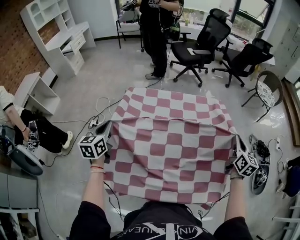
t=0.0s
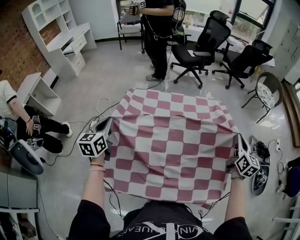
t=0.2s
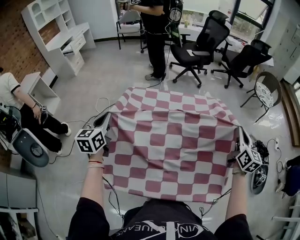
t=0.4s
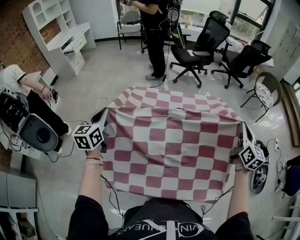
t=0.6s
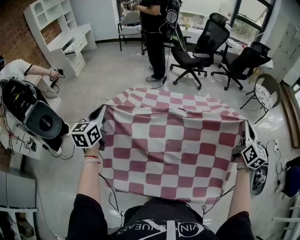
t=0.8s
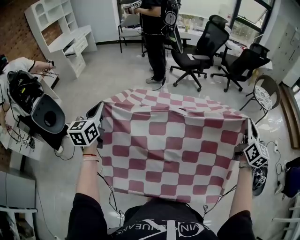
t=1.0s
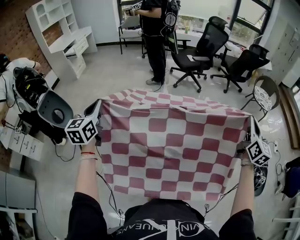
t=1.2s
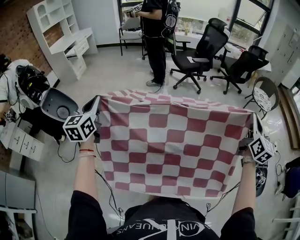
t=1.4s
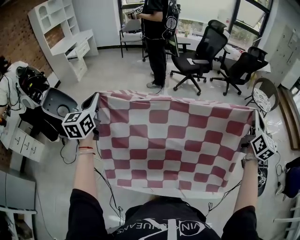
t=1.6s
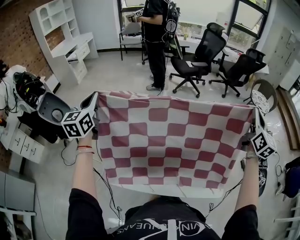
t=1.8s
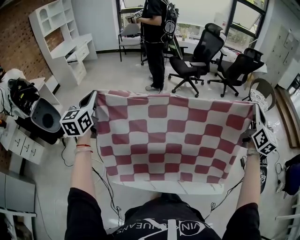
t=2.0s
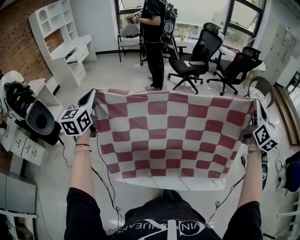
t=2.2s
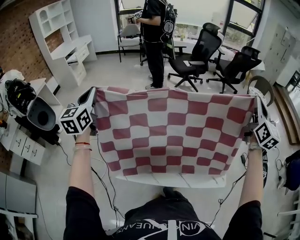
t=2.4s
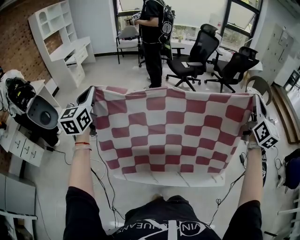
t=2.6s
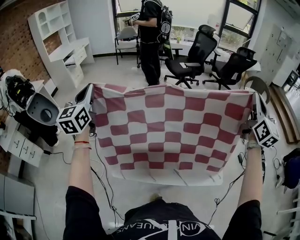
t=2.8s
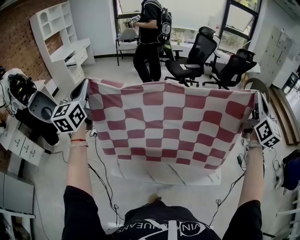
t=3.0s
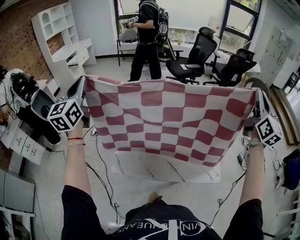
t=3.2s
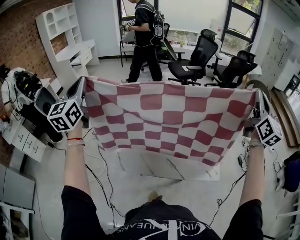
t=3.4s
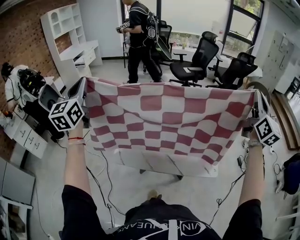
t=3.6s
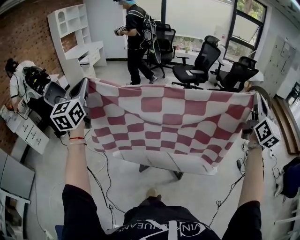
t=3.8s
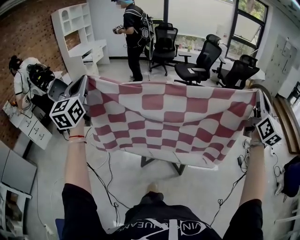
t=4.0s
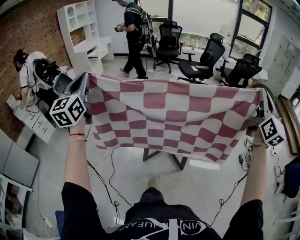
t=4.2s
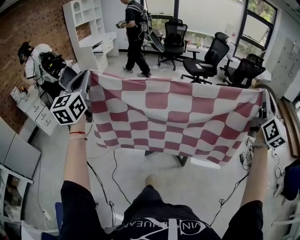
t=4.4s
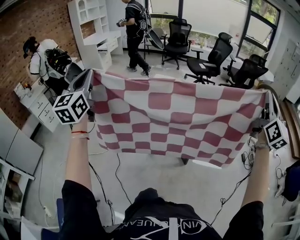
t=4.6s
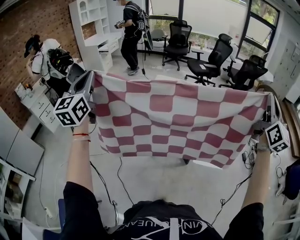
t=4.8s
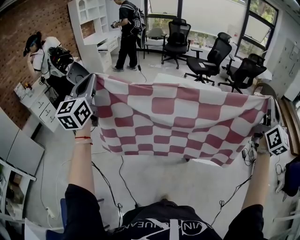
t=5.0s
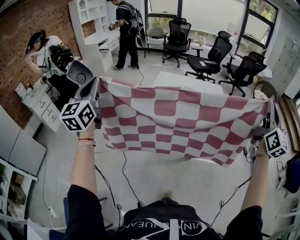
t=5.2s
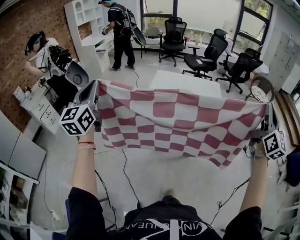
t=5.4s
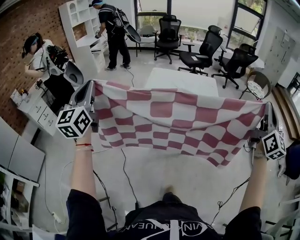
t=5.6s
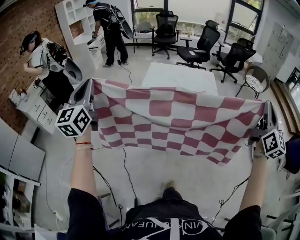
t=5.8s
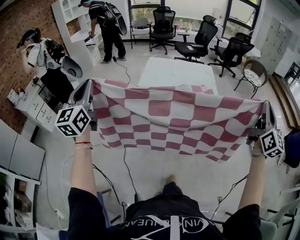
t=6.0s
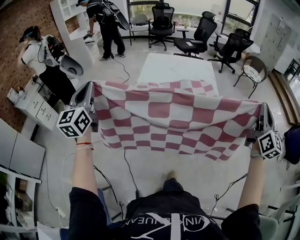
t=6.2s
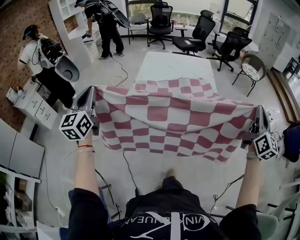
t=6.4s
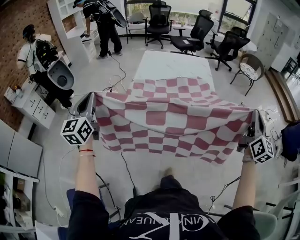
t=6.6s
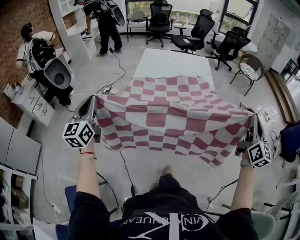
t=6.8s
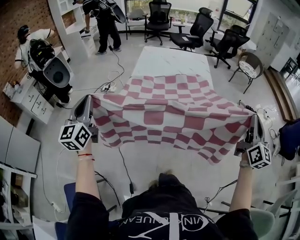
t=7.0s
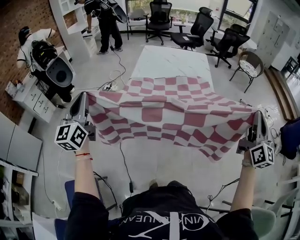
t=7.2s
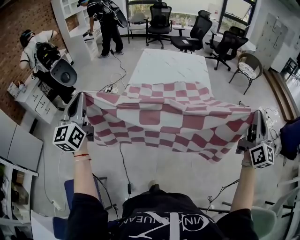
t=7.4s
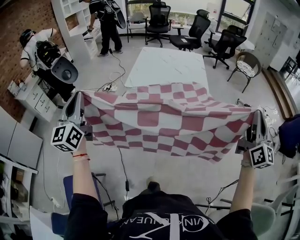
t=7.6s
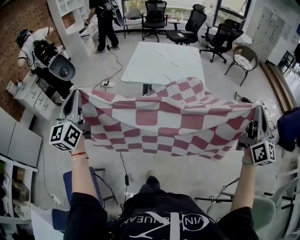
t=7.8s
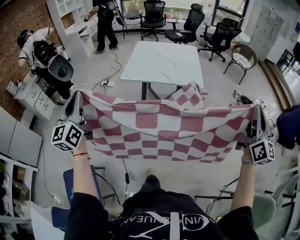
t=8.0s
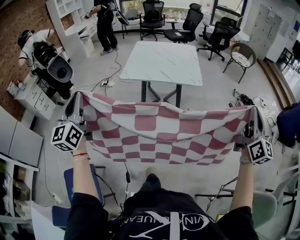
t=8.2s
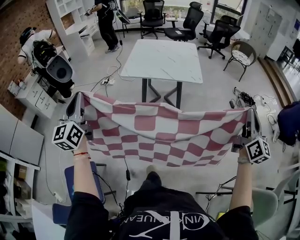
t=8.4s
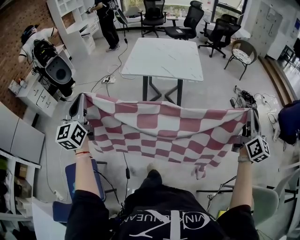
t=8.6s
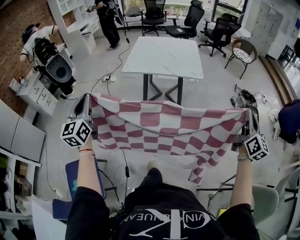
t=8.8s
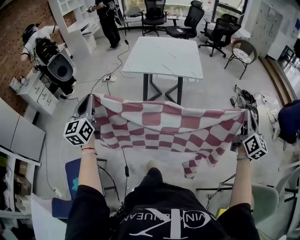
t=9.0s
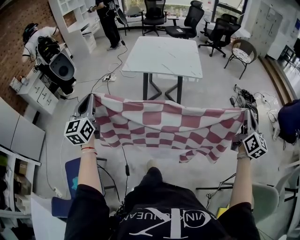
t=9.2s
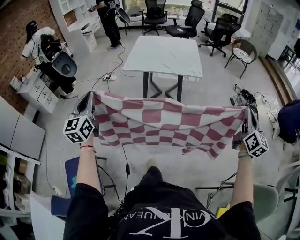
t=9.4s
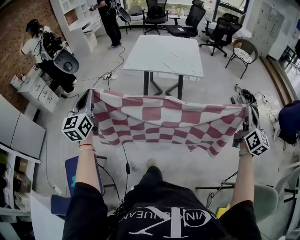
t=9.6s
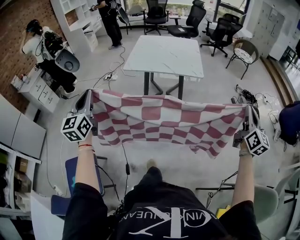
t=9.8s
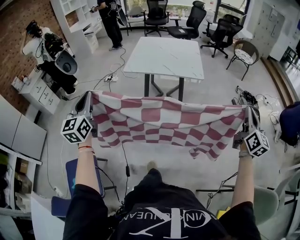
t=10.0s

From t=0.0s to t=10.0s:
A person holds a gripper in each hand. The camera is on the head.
From t=0.0s to t=1.4s: Both grippers travel together upward, roughly 15 cm. The right gripper changes its angle by some 20 degrees.
From t=1.4s to t=2.8s: Both grippers travel together upward and backward, about 15 cm.
From t=2.8s to t=4.2s: Both grippers travel together backward, approximately 25 cm.
From t=4.2s to t=5.8s: Both grippers move backward, some 20 cm.
From t=5.8s to t=7.2s: Both grippers move backward and downward, roughly 15 cm.
From t=7.2s to t=8.6s: The right gripper goes roughly 15 cm backward and to the right. The left gripper goes approximately 15 cm backward.
From t=8.6s to t=10.0s: The grippers make only small movements.

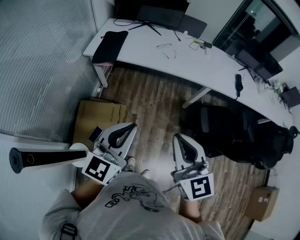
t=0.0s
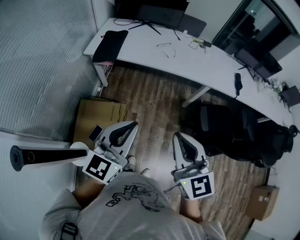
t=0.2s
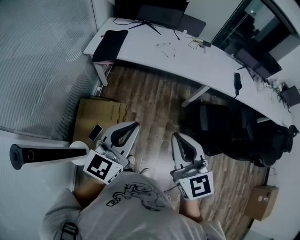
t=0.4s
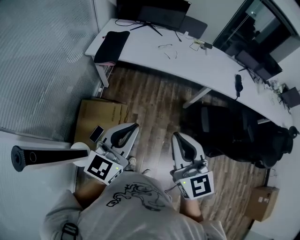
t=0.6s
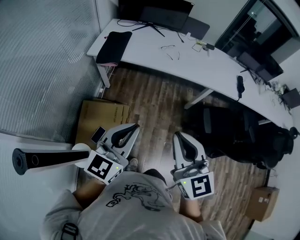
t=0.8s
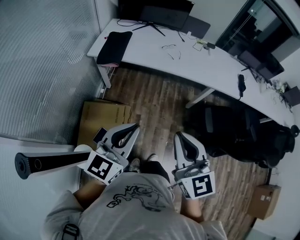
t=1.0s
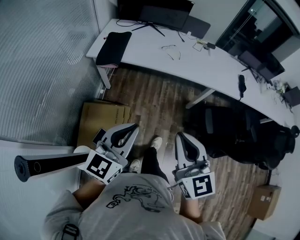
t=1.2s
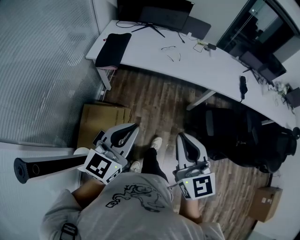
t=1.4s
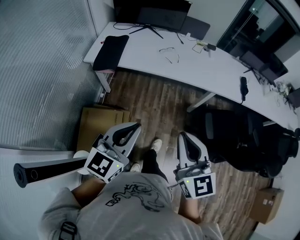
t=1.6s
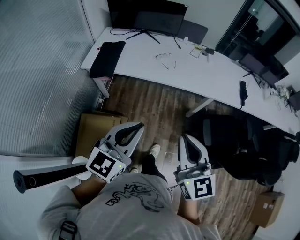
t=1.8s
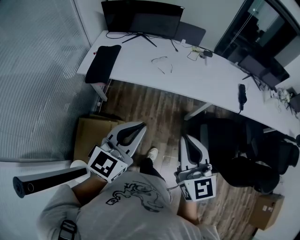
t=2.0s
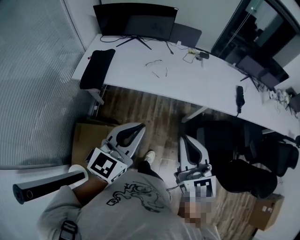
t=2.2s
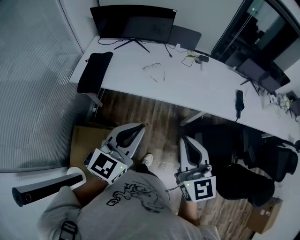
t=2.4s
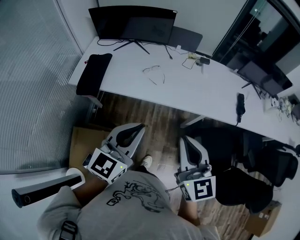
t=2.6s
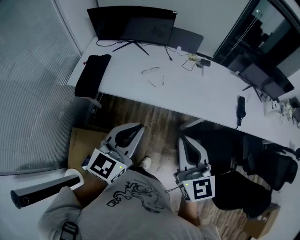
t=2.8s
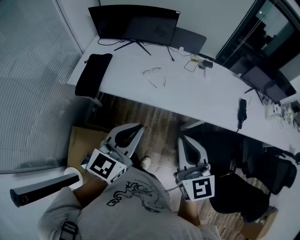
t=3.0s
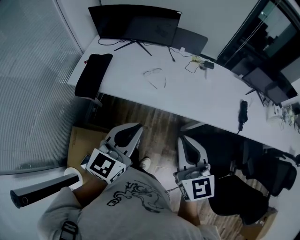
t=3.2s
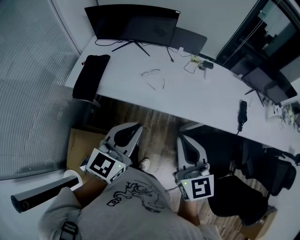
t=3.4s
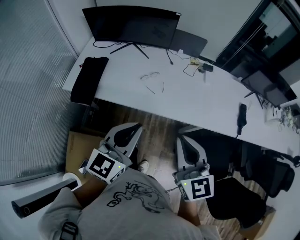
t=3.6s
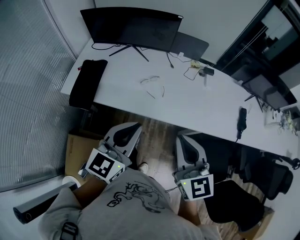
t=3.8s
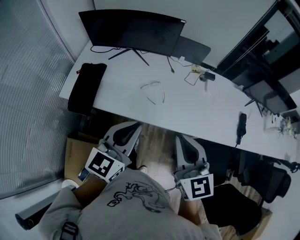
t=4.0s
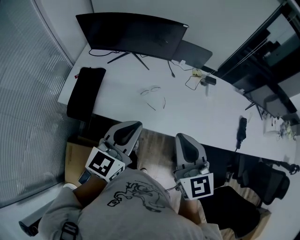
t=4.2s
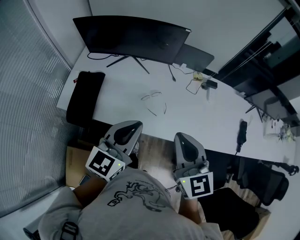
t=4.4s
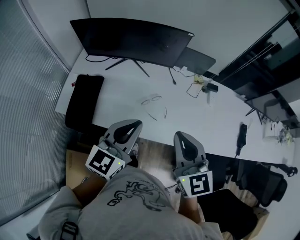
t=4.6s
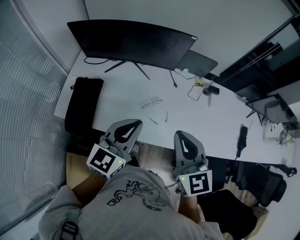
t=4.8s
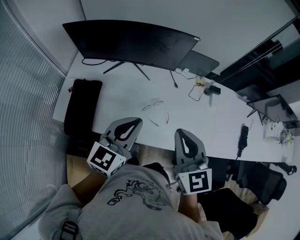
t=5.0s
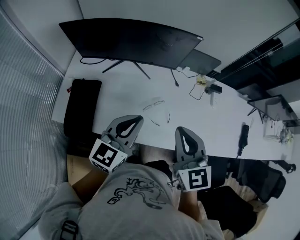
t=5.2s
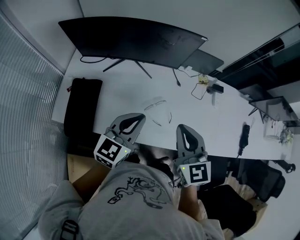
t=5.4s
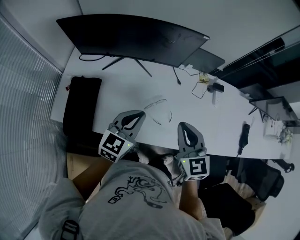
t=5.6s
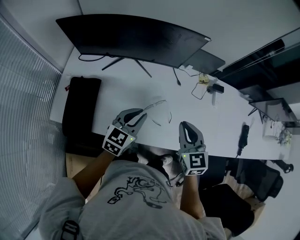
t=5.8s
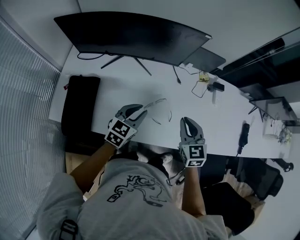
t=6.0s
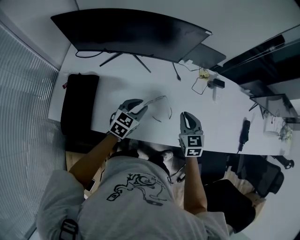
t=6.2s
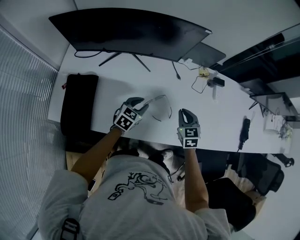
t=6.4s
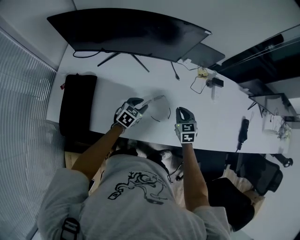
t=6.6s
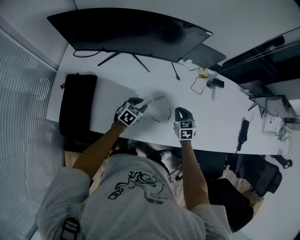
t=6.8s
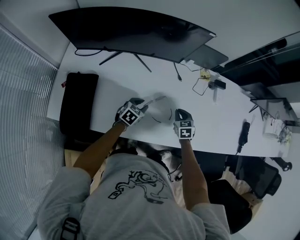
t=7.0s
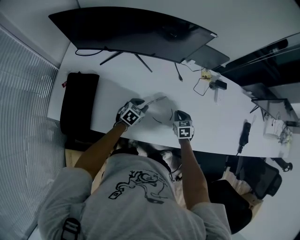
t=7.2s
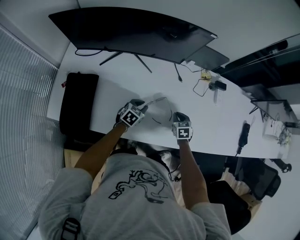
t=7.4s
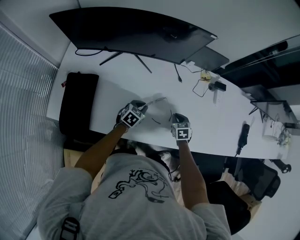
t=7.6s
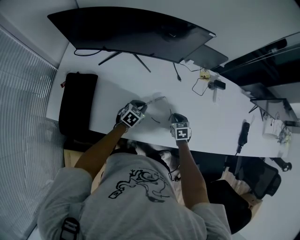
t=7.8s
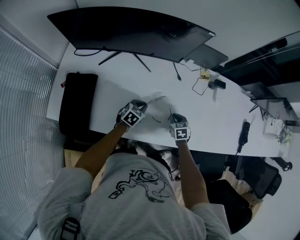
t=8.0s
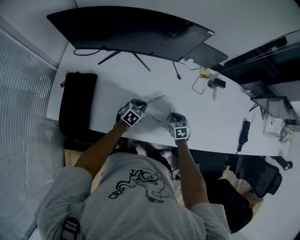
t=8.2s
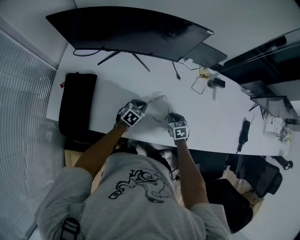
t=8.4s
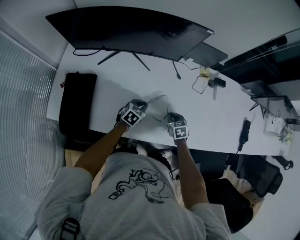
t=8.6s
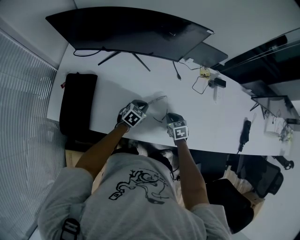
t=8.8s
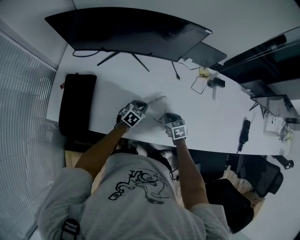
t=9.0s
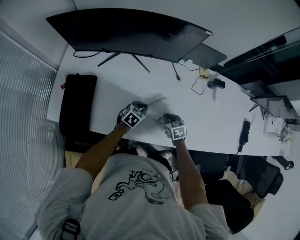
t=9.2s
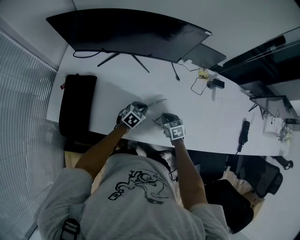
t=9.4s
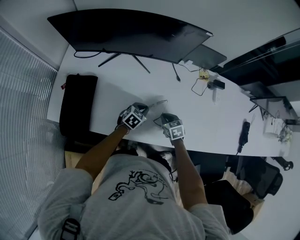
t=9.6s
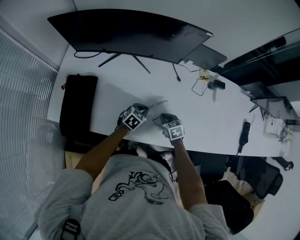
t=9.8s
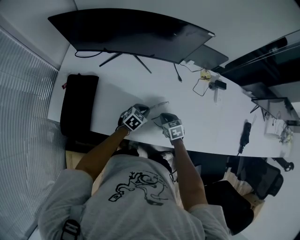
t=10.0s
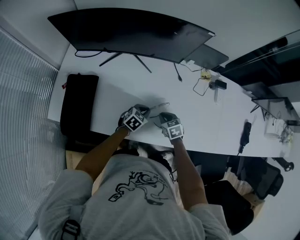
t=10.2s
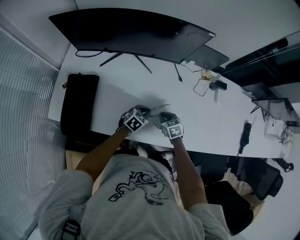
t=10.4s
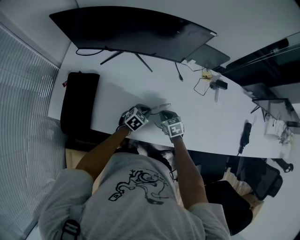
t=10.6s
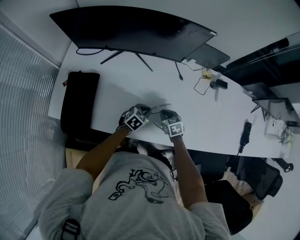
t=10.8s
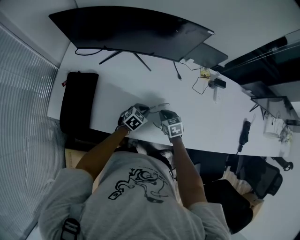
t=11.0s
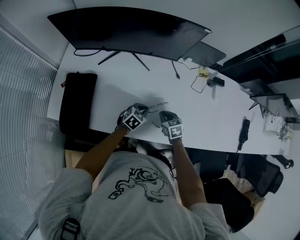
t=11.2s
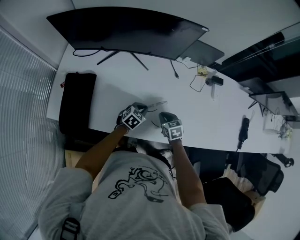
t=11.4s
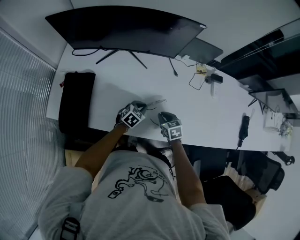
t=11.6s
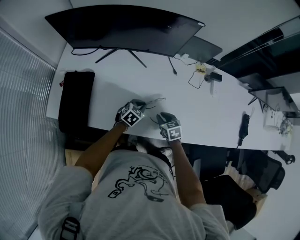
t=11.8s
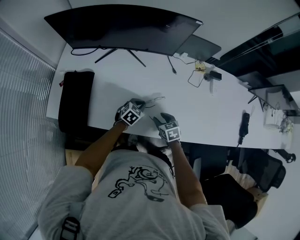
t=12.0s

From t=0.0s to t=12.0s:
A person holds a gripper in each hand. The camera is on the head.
From t=0.0s to t=1.6s: Both grippers move forward, about 5 cm.
From t=1.6s to t=3.0s: Both grippers move forward and to the right, approximately 30 cm.
From t=3.0s to t=4.4s: The two grippers go about 25 cm forward.
From t=4.4s to t=6.0s: The right gripper shifts approximately 30 cm forward and downward, and changes its angle by some 20 degrees; the left gripper goes about 30 cm downward and forward, and changes its angle by about 20 degrees.
From t=6.0s to t=7.6s: The grippers both shift downward by about 20 cm. The left gripper changes its angle by about 20 degrees. The right gripper changes its angle by some 30 degrees.
From t=7.6s to t=9.0s: The right gripper shifts by some 5 cm.
From t=9.0s to t=10.4s: The right gripper ends up roughly 5 cm from where it was.
From t=10.4s to t=12.0s: The right gripper shifts roughly 5 cm backward, and opens.

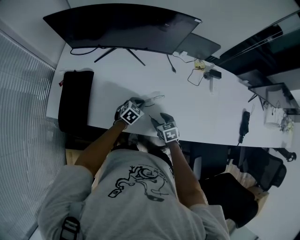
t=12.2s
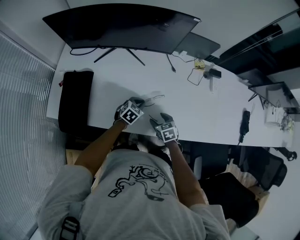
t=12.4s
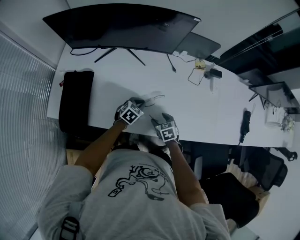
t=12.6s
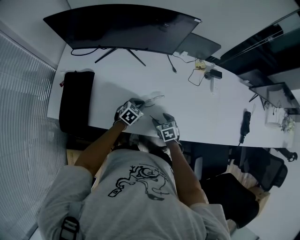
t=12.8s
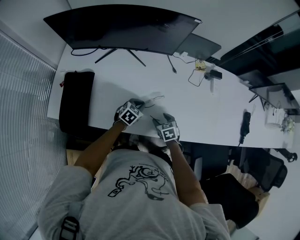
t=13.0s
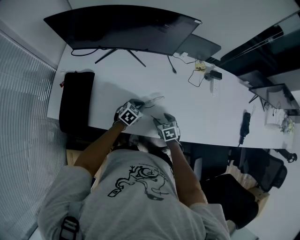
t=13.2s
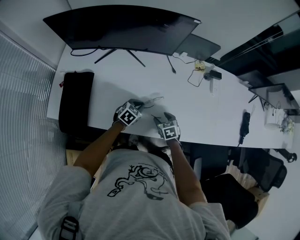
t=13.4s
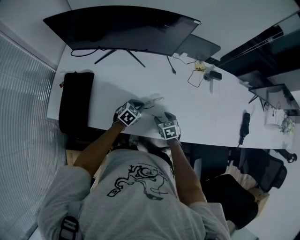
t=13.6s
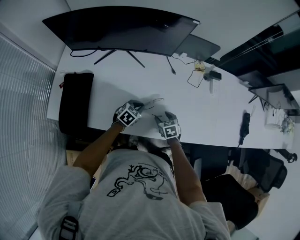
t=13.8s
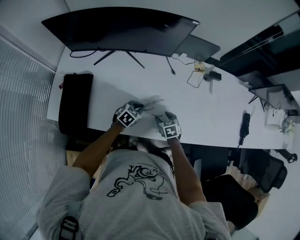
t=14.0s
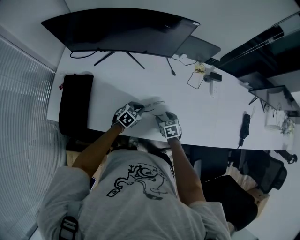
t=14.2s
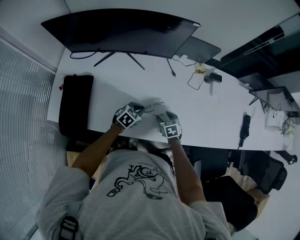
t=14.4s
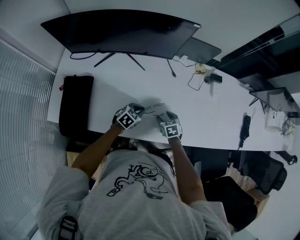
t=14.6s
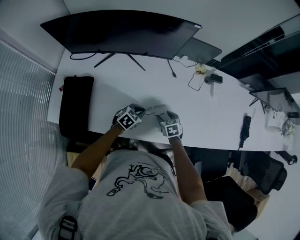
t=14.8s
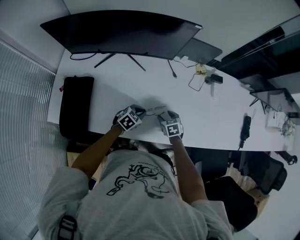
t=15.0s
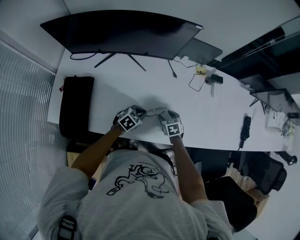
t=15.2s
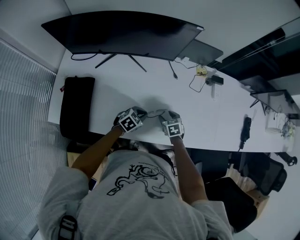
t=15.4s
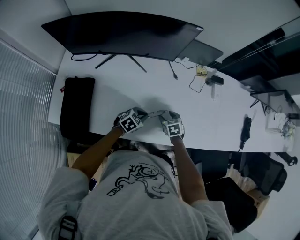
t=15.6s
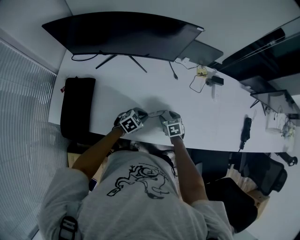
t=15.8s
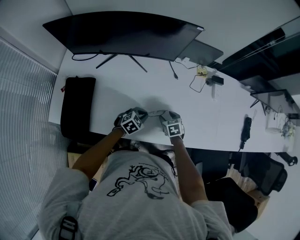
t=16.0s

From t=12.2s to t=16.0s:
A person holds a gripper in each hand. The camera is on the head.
From t=12.2s to t=13.4s: The grippers move only a little.
From t=13.4s to t=16.0s: The grippers move only a little.
